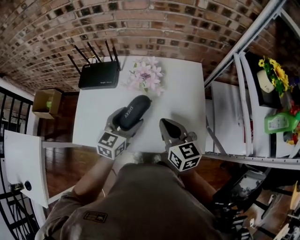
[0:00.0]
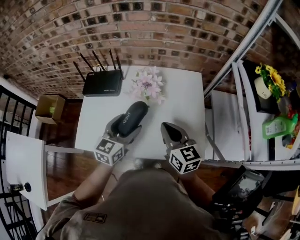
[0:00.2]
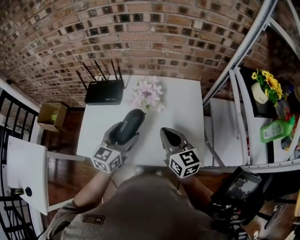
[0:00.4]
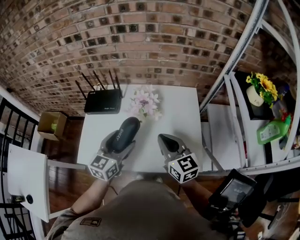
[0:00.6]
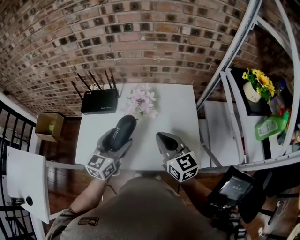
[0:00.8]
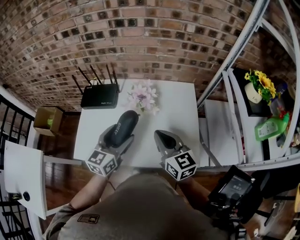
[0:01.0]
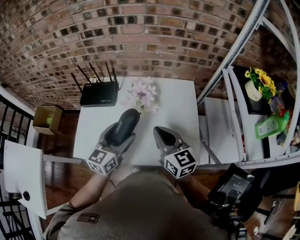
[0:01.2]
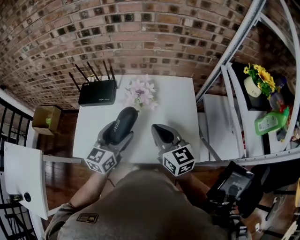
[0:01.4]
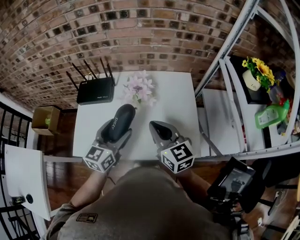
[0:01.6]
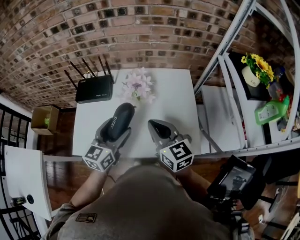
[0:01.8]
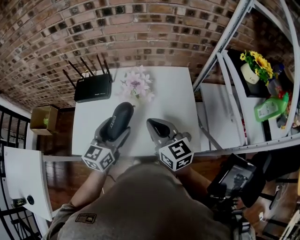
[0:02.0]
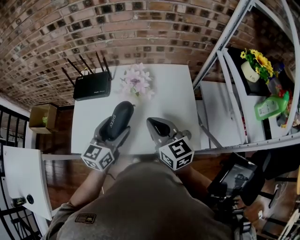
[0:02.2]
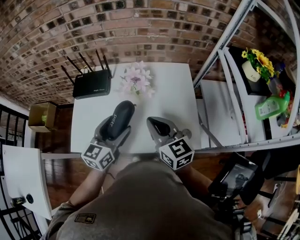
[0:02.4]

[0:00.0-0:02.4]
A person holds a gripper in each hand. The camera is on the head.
0.0 to 1.2 s: The two grippers go some 5 cm upward.
1.2 to 2.4 s: The grippers move only a little.

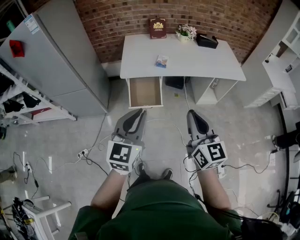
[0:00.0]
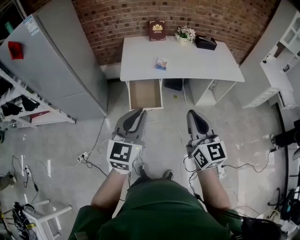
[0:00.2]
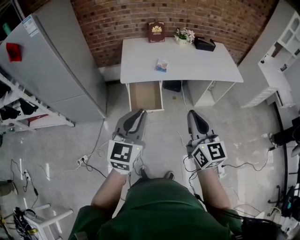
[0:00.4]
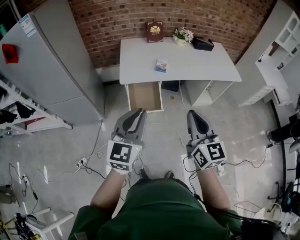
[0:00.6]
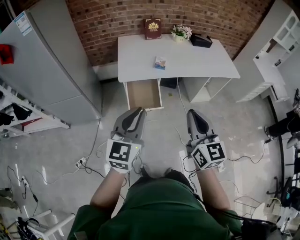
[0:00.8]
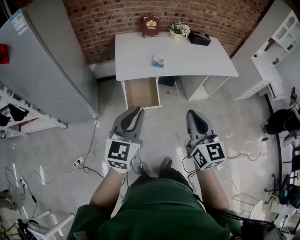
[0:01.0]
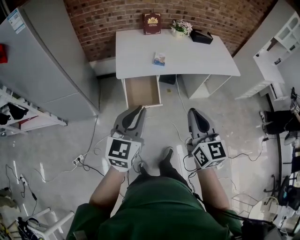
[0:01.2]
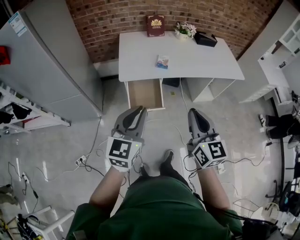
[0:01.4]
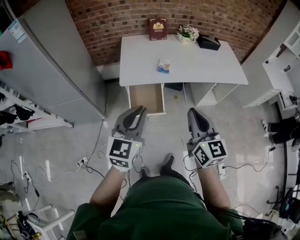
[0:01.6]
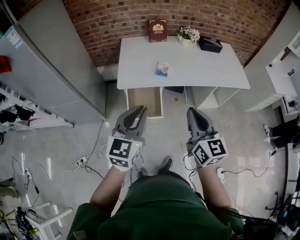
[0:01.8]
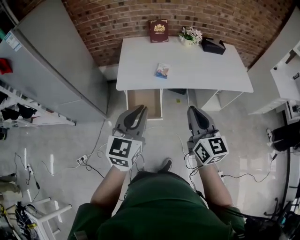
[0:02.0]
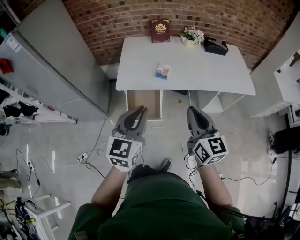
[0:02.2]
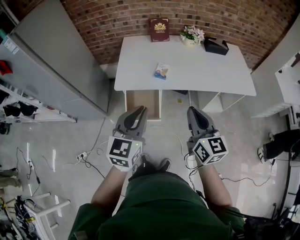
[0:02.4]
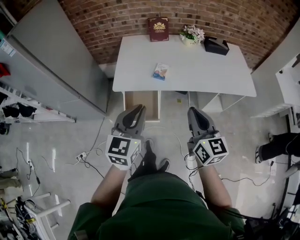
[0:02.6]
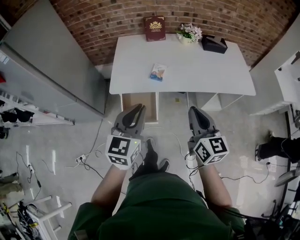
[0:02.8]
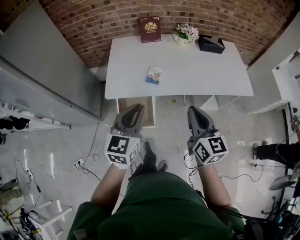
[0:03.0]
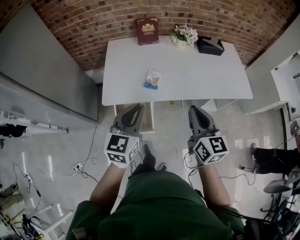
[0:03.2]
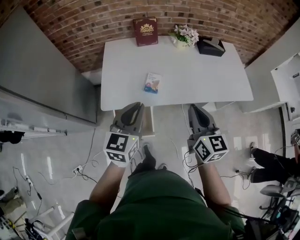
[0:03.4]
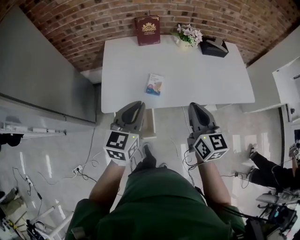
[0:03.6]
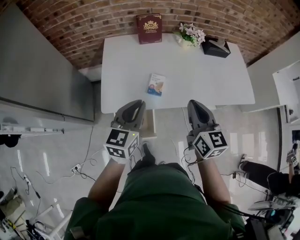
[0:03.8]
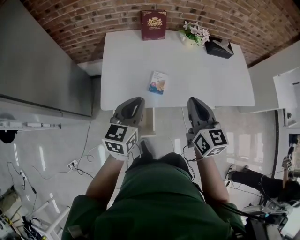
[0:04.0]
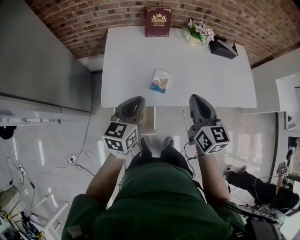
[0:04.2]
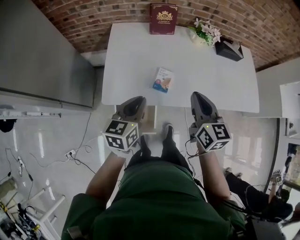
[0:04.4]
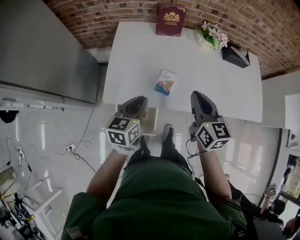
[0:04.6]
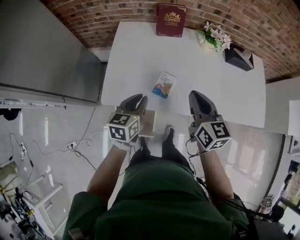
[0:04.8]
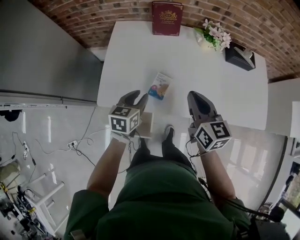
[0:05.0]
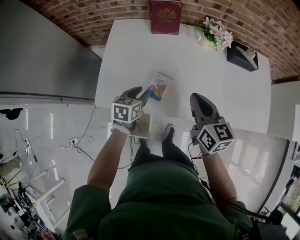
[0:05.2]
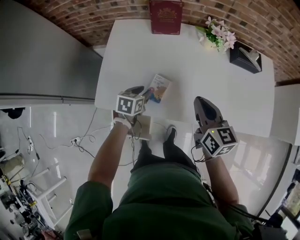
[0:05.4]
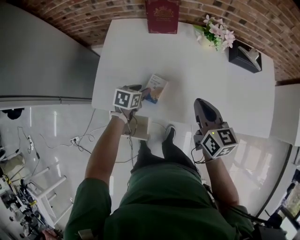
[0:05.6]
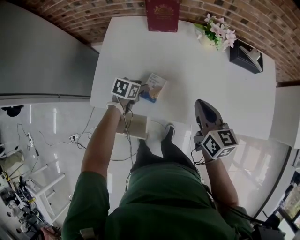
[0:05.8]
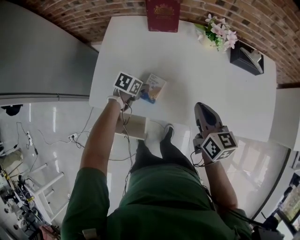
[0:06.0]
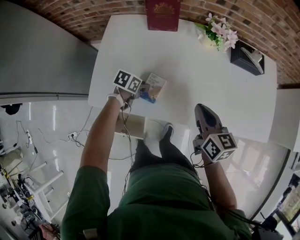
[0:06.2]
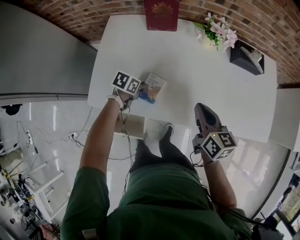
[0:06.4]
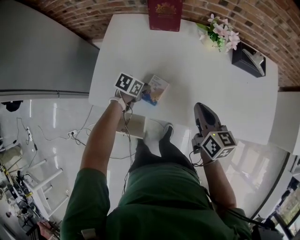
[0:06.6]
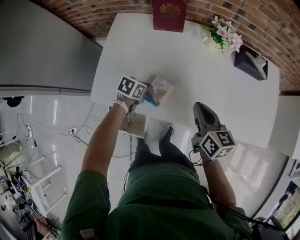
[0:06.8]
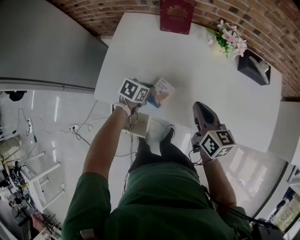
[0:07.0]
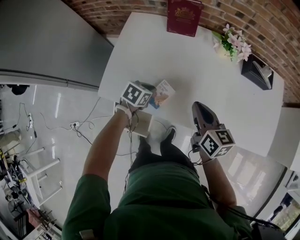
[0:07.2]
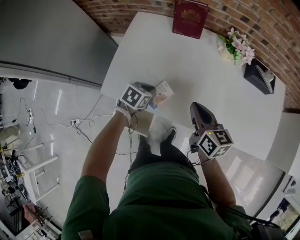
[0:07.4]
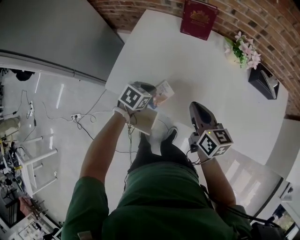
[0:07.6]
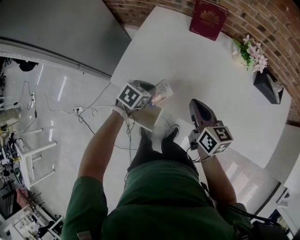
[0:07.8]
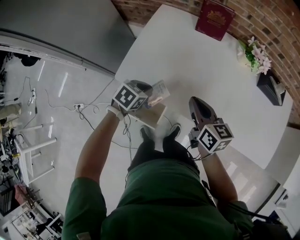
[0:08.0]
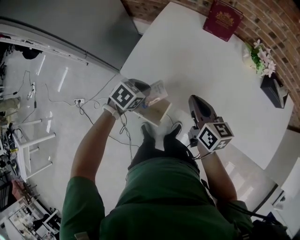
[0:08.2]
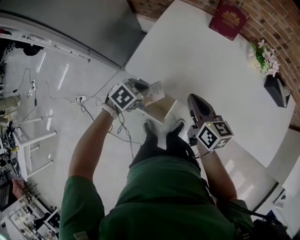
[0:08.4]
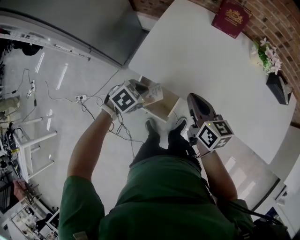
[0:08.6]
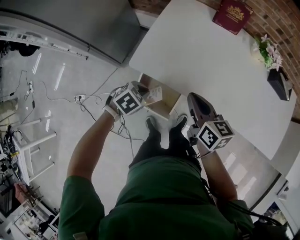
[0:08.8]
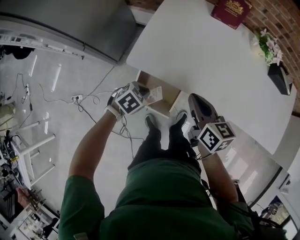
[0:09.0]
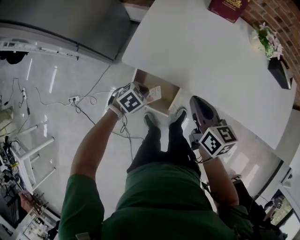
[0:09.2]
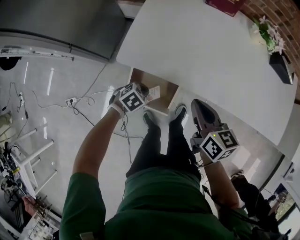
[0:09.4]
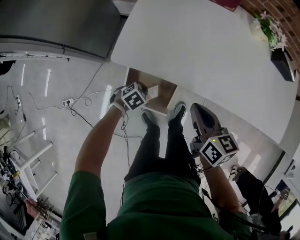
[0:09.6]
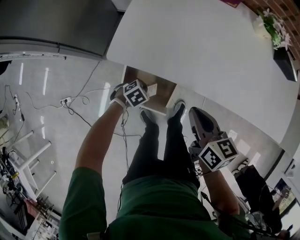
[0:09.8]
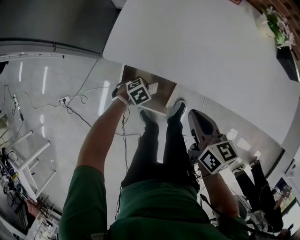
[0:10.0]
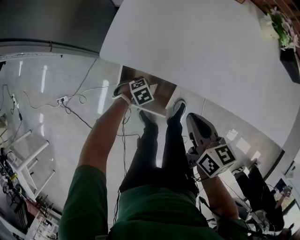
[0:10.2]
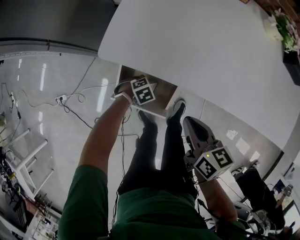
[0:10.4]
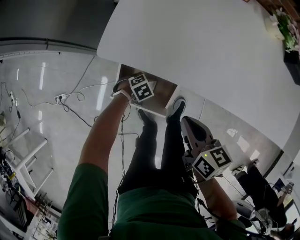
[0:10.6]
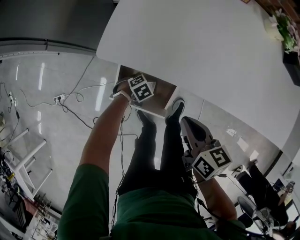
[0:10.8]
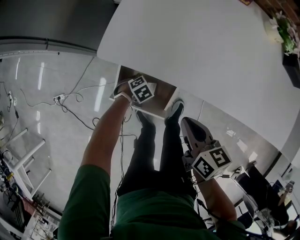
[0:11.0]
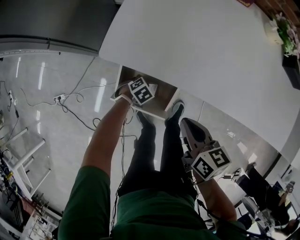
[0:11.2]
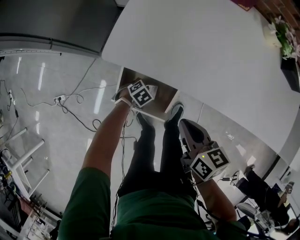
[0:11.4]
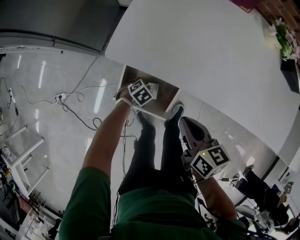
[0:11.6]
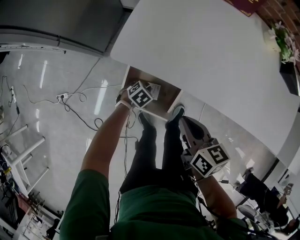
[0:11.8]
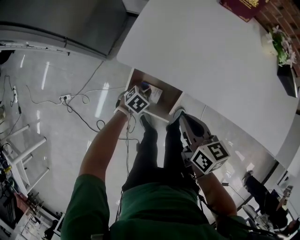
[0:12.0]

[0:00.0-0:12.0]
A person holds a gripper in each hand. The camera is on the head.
0.0 to 1.6 s: Both grippers move forward and to the left, approximately 10 cm.
1.6 to 3.0 s: Both grippers move forward and to the right, about 20 cm.
3.0 to 4.4 s: The right gripper goes approximately 20 cm forward. The left gripper moves forward and downward, approximately 20 cm, and rotates some 20 degrees.
4.4 to 6.0 s: The right gripper travels to the right, downward and forward by about 20 cm, and rotates some 20 degrees. Meanwhile the left gripper travels downward and forward by about 30 cm, points its fingers roughly 40 degrees further downward, and opens its fingers.
6.0 to 7.6 s: The left gripper is displaced upward and backward by some 10 cm, and closes up. The right gripper is displaced to the left by roughly 10 cm.
7.6 to 9.0 s: The left gripper shifts about 20 cm backward and to the left. Meanwhile the right gripper heads to the left and backward, covering some 15 cm.
9.0 to 10.4 s: The right gripper goes some 15 cm downward. The left gripper travels downward by roughly 25 cm, and swivels some 20 degrees.
10.4 to 12.0 s: The right gripper ends up roughly 5 cm from where it was. Meanwhile the left gripper is displaced upward by some 10 cm, and changes its angle by roughly 30 degrees.

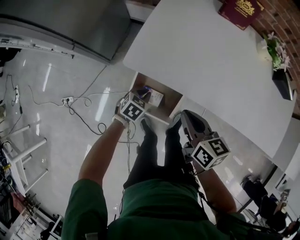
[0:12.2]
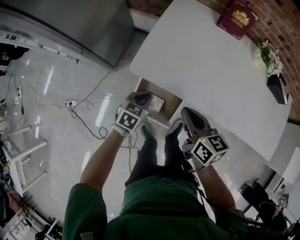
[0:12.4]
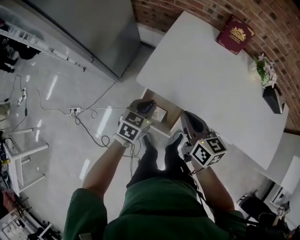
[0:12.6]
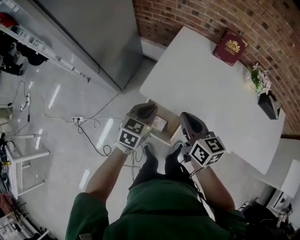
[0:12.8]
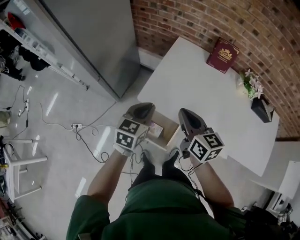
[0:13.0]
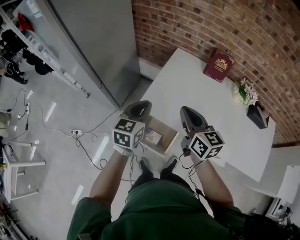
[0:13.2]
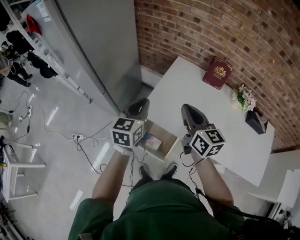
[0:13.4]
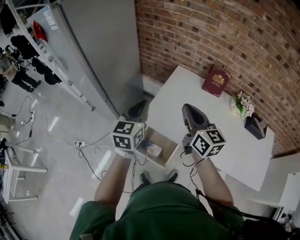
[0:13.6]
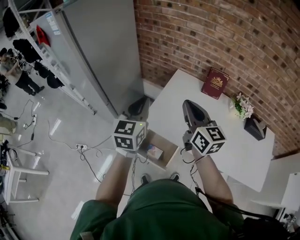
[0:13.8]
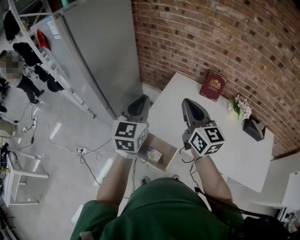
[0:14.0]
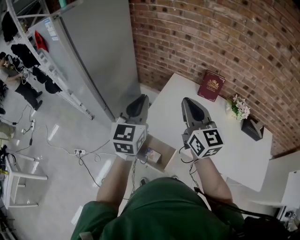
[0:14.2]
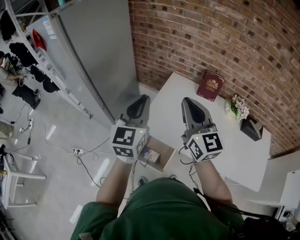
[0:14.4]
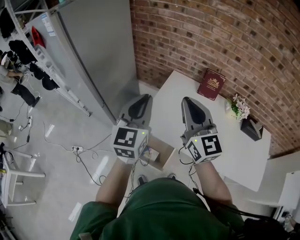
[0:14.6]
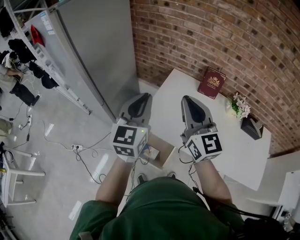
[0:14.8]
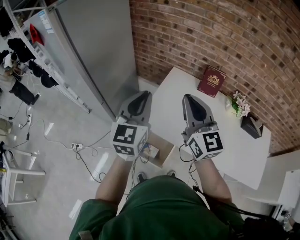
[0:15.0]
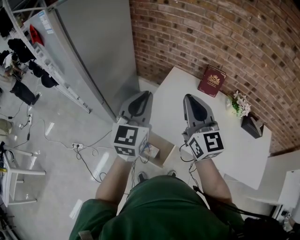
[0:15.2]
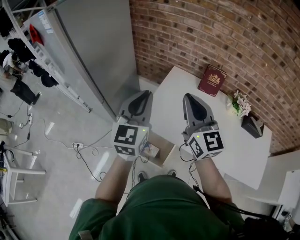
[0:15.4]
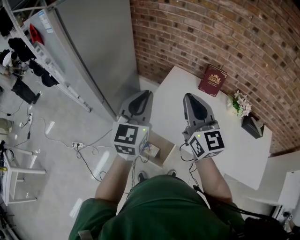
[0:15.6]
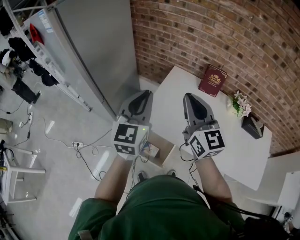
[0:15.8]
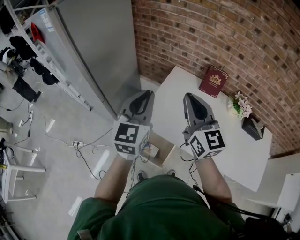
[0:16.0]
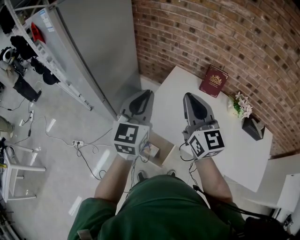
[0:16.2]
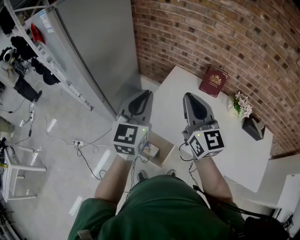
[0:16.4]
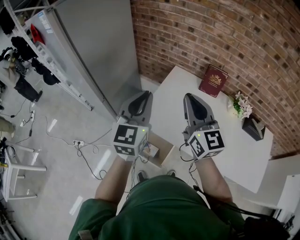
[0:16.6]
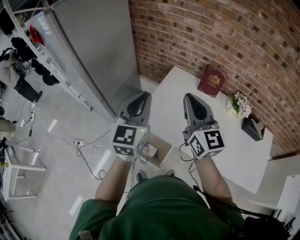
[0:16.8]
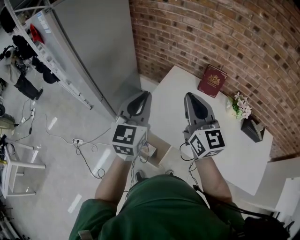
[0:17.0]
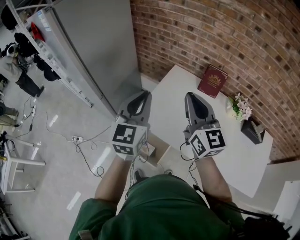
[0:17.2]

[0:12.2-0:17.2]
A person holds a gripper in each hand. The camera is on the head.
12.2 to 13.8 s: The right gripper goes about 35 cm upward, and changes its angle by approximately 40 degrees, while the left gripper moves upward, about 50 cm, and angles its fingers upward, by about 50 degrees.
13.8 to 15.6 s: The left gripper shifts by roughly 5 cm.
15.6 to 17.2 s: The right gripper moves to the right, approximately 5 cm.

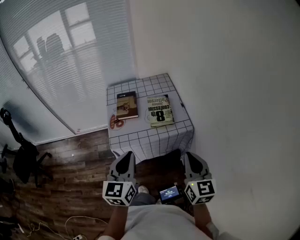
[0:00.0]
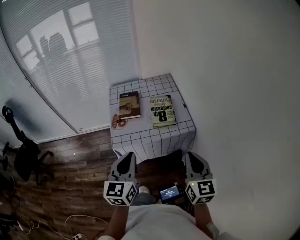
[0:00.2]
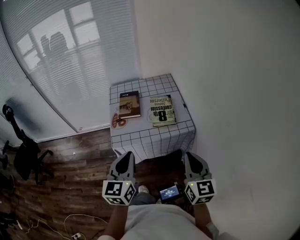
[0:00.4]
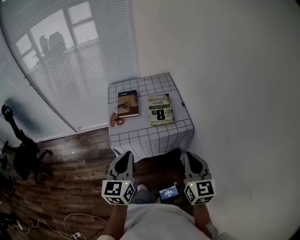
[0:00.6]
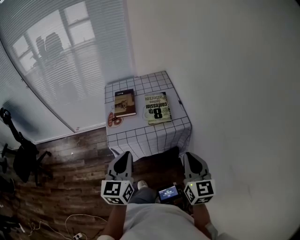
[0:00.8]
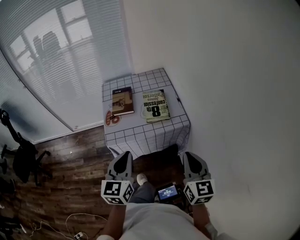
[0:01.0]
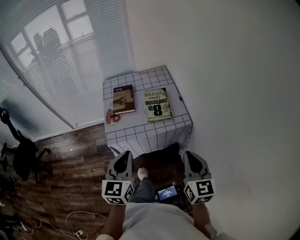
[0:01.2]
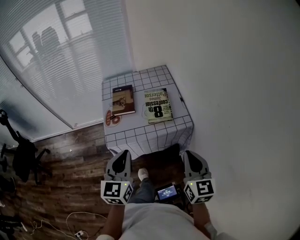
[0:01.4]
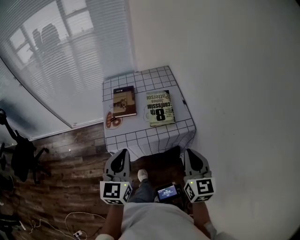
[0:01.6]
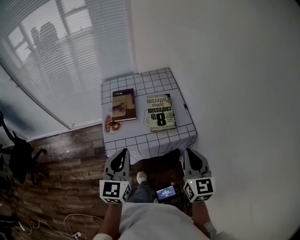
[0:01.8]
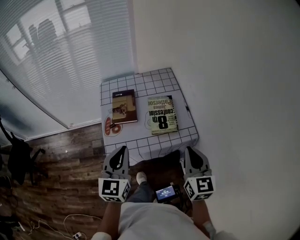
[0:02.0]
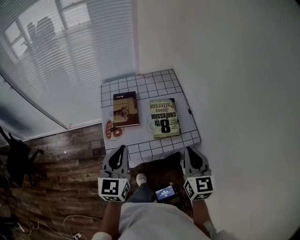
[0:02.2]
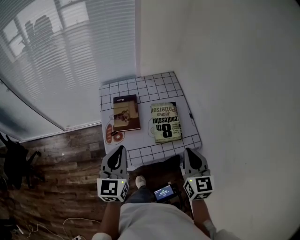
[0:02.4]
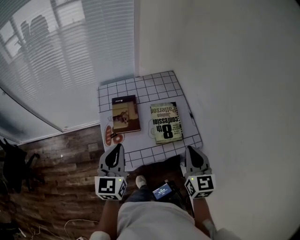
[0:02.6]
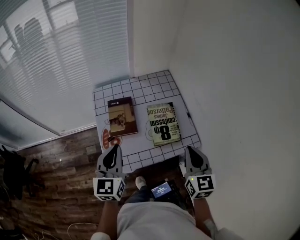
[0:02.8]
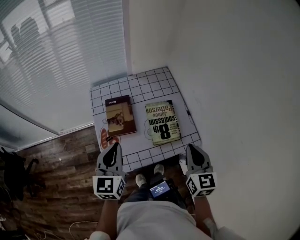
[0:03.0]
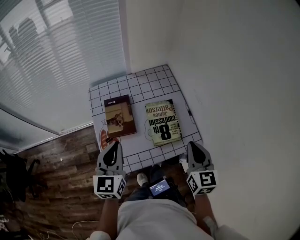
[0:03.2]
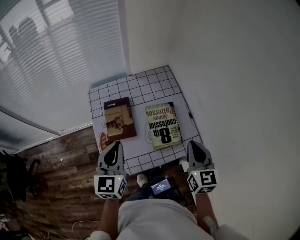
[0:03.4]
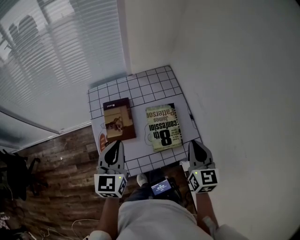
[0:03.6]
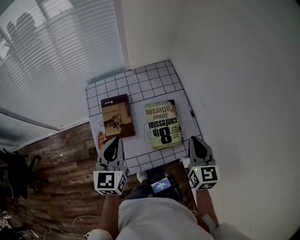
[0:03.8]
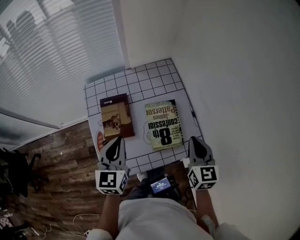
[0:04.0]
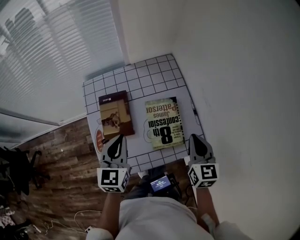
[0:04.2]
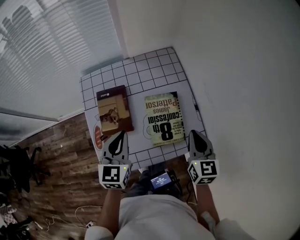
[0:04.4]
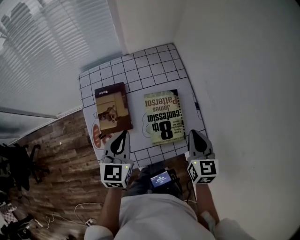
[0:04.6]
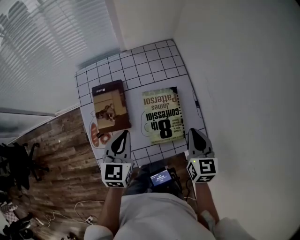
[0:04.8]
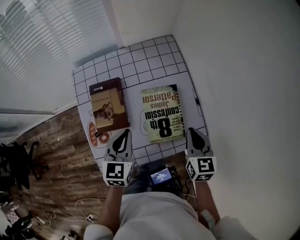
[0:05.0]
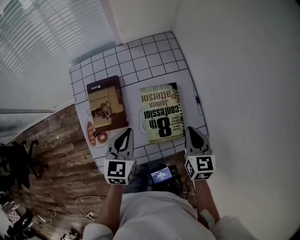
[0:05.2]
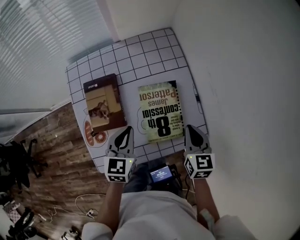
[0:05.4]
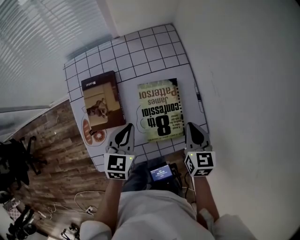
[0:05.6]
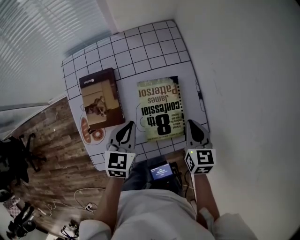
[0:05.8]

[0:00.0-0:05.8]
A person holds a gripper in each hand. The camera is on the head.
0.0 to 1.4 s: The grippers stay close to where they were, moving slightly.
1.4 to 2.8 s: The left gripper moves forward and to the left, some 25 cm, while the right gripper moves forward, about 20 cm.
2.8 to 4.4 s: The right gripper moves forward and downward, approximately 15 cm. The left gripper moves forward, downward and to the right, approximately 15 cm.
4.4 to 5.8 s: The right gripper heads downward, covering roughly 10 cm, while the left gripper travels downward and to the right by about 15 cm.
